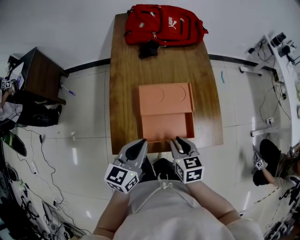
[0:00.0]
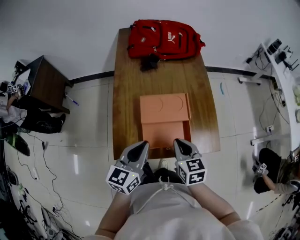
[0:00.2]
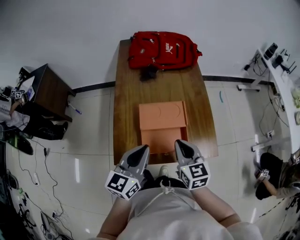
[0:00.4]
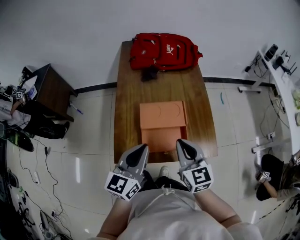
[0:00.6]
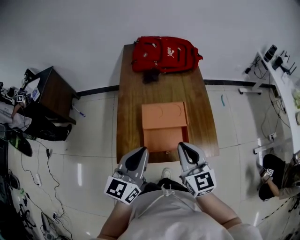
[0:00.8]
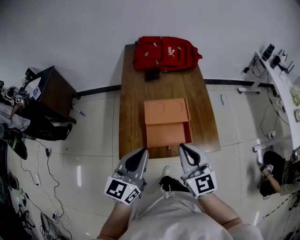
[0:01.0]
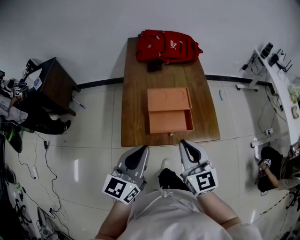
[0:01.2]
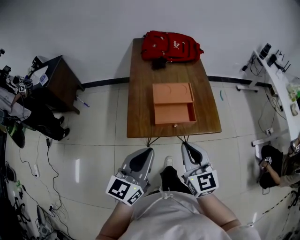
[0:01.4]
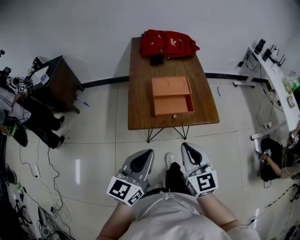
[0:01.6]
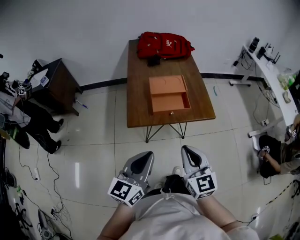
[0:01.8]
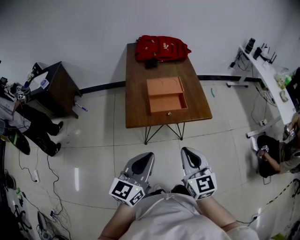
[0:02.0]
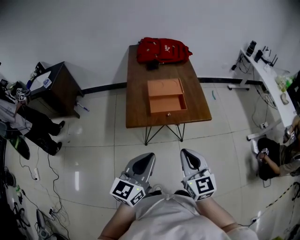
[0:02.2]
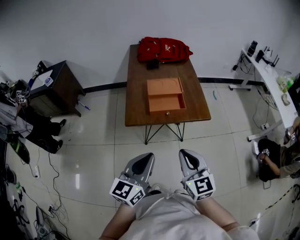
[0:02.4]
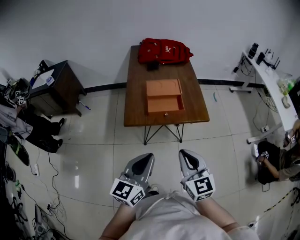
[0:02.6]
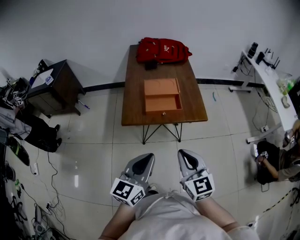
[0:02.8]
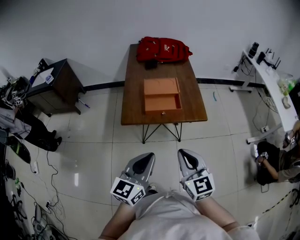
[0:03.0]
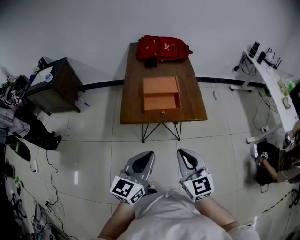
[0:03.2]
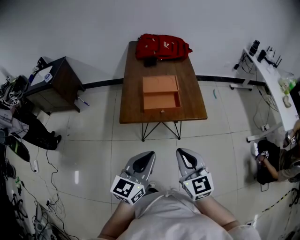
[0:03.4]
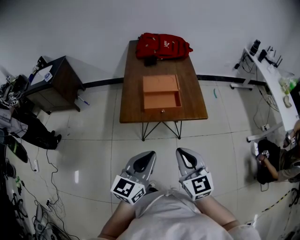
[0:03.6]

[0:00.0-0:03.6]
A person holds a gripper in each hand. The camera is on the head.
0:00.0 to 0:01.8: Both grippers move backward and upward, about 35 cm. The right gripper changes its angle by some 30 degrees, and closes up.
0:01.8 to 0:03.6: The right gripper heads to the right, covering roughly 5 cm. Meanwhile the left gripper shifts roughly 10 cm to the right.

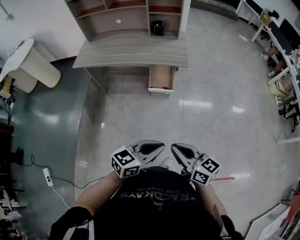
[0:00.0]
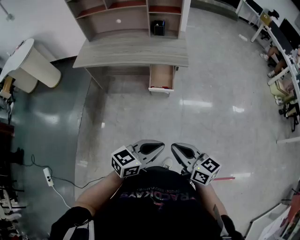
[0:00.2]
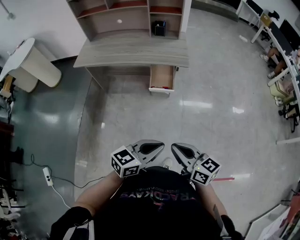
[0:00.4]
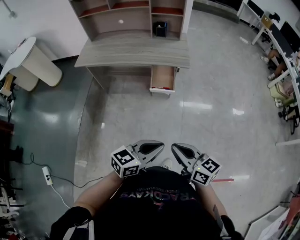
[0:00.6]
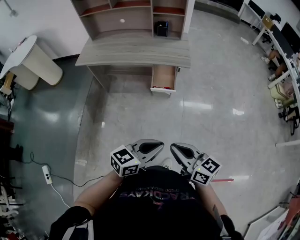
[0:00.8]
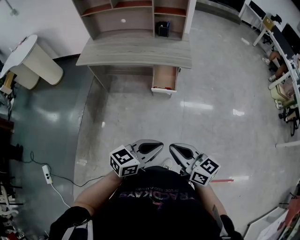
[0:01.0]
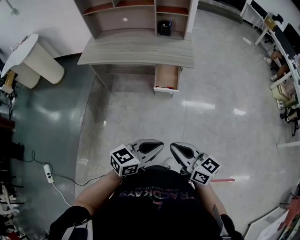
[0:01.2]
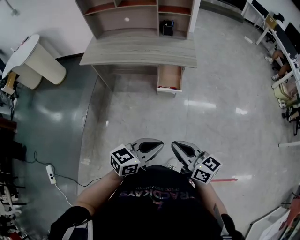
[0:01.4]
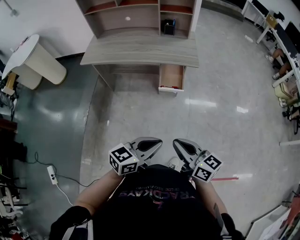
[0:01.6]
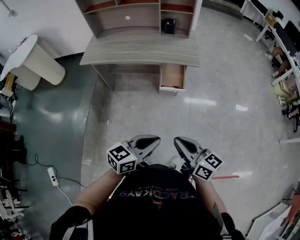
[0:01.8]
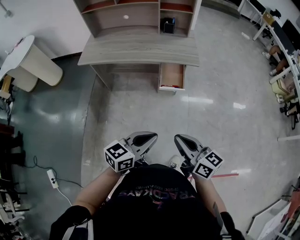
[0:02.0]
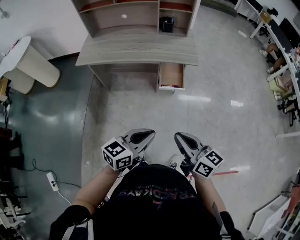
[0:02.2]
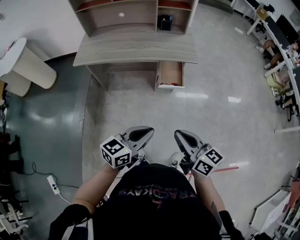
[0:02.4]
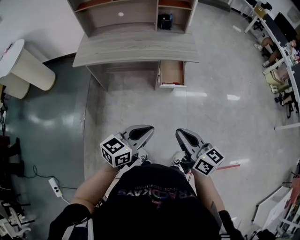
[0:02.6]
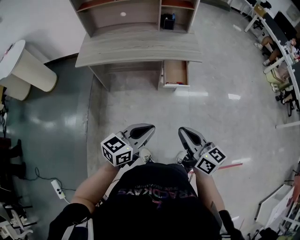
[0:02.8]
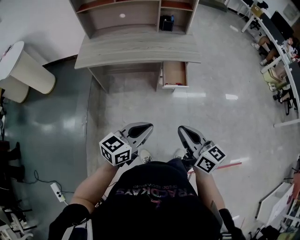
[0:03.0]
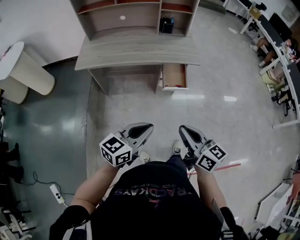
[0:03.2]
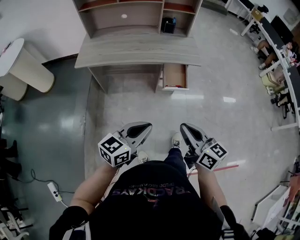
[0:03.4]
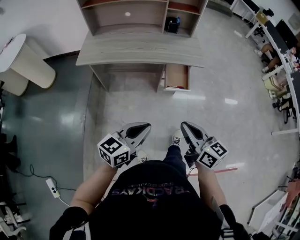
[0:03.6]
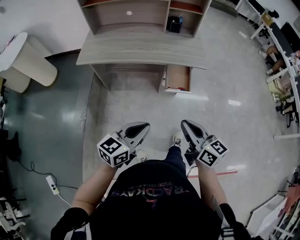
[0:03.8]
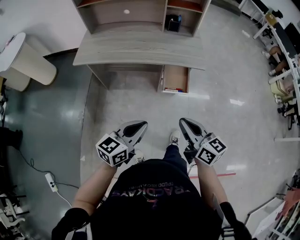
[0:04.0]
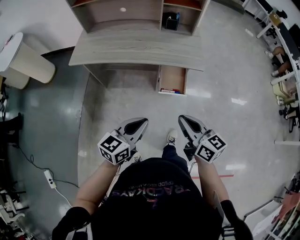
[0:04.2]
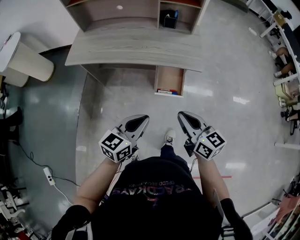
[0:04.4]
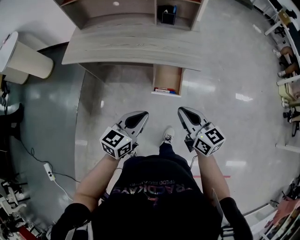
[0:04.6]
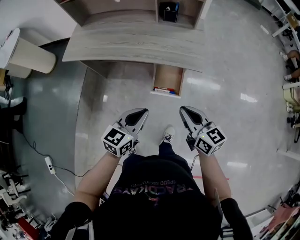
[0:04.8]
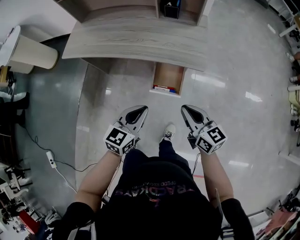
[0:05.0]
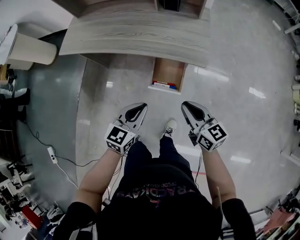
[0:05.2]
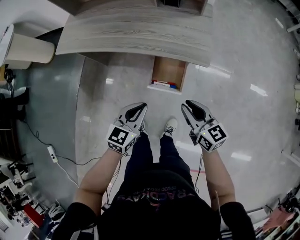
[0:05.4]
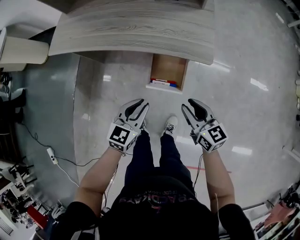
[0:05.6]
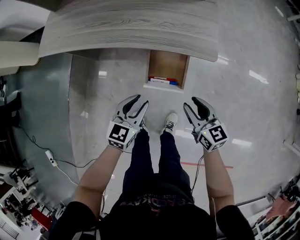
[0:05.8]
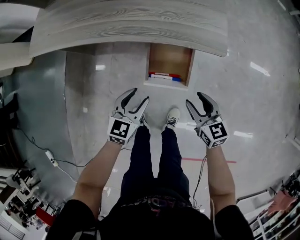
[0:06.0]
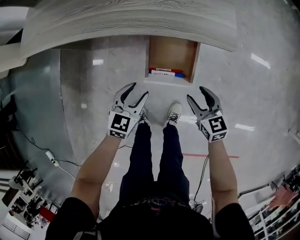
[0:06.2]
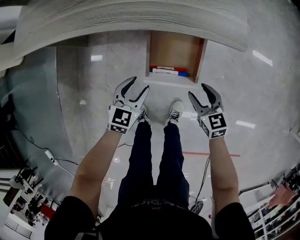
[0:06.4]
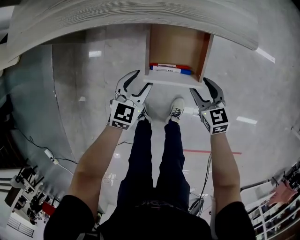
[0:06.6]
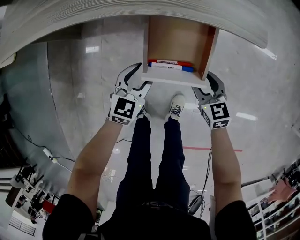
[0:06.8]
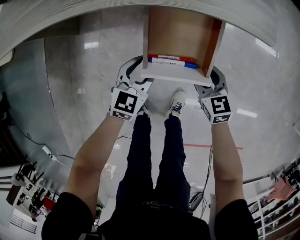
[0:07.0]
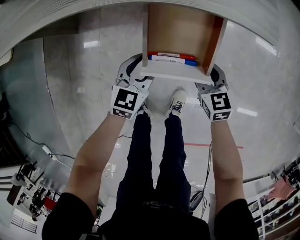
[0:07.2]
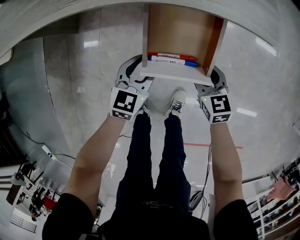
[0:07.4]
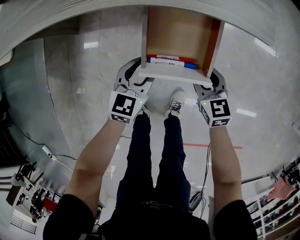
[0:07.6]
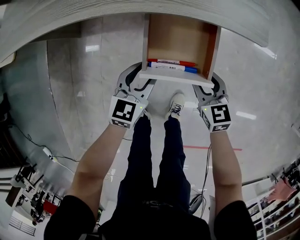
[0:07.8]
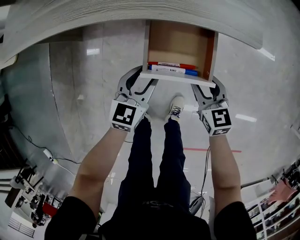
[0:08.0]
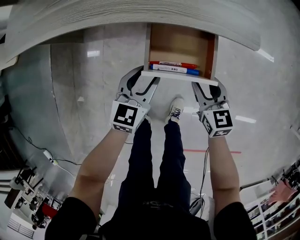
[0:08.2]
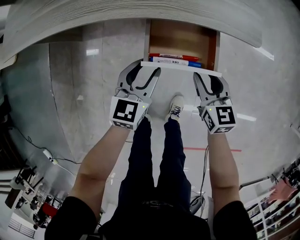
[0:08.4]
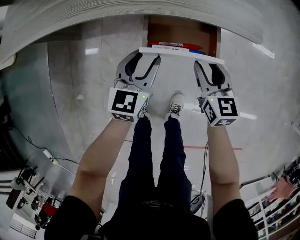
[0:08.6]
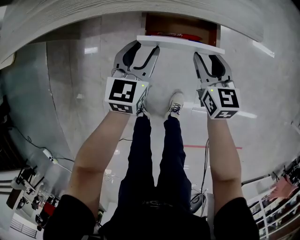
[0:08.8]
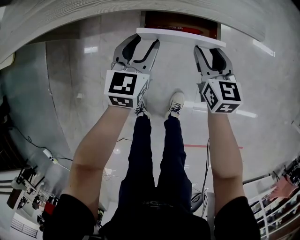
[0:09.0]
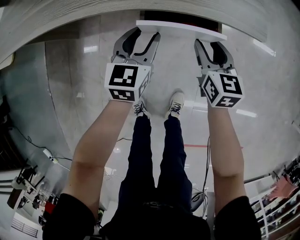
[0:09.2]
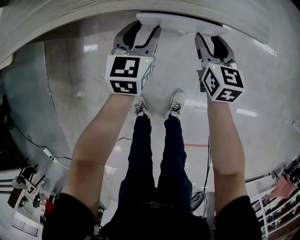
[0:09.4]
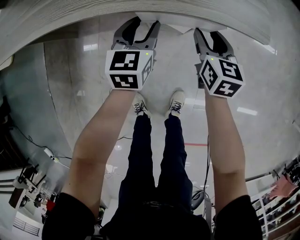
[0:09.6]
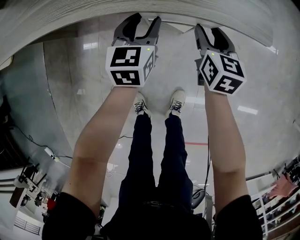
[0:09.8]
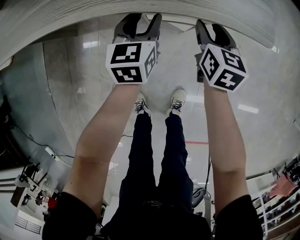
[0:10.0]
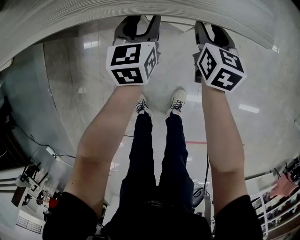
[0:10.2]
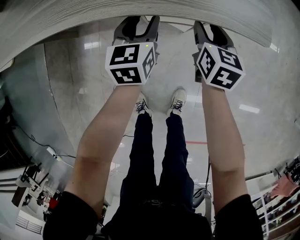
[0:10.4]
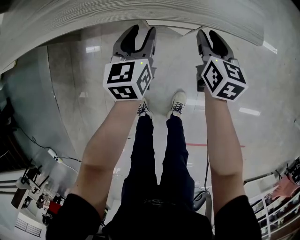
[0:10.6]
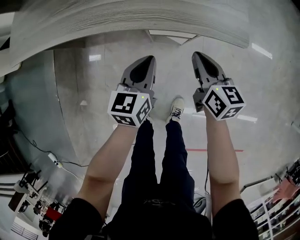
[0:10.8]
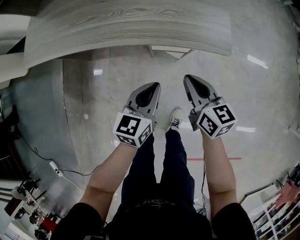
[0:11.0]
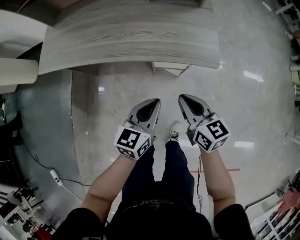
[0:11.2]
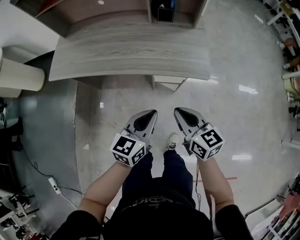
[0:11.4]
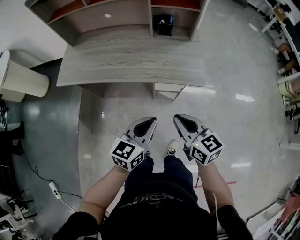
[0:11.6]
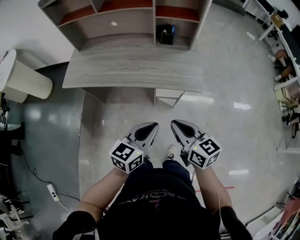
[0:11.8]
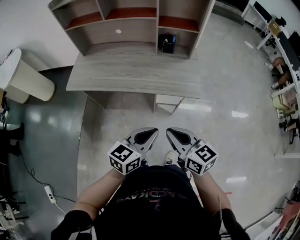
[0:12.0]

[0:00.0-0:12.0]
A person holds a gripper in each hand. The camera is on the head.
0:00.0 to 0:01.6: The right gripper shifts by roughly 5 cm; the left gripper shifts about 5 cm to the left.
0:01.6 to 0:03.0: The left gripper travels to the left by some 15 cm. The right gripper is displaced to the left by about 10 cm.
0:03.0 to 0:04.4: The two grippers go roughly 15 cm forward and to the right.
0:04.4 to 0:06.0: The left gripper goes approximately 20 cm downward and forward, changes its angle by approximately 20 degrees, and opens its fingers. Meanwhile the right gripper goes roughly 25 cm downward, and opens.
0:06.0 to 0:07.6: The left gripper shifts some 10 cm downward and forward, while the right gripper is displaced downward by approximately 10 cm.
0:07.6 to 0:09.0: The two grippers go roughly 10 cm forward and upward.
0:09.0 to 0:10.4: Both grippers move forward, approximately 10 cm.
0:10.4 to 0:12.0: The left gripper shifts approximately 40 cm upward and backward, swivels approximately 30 degrees, and closes its fingers. Meanwhile the right gripper goes about 40 cm upward, backward and to the left, rotates about 40 degrees, and closes its fingers.

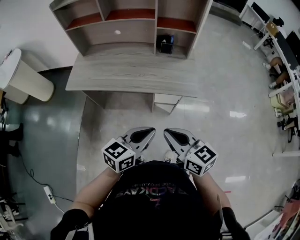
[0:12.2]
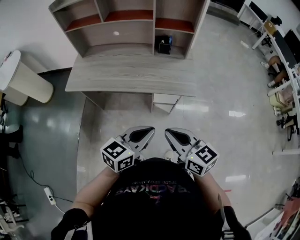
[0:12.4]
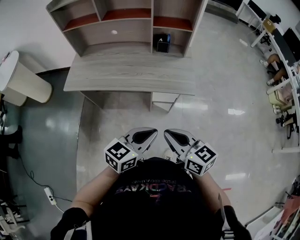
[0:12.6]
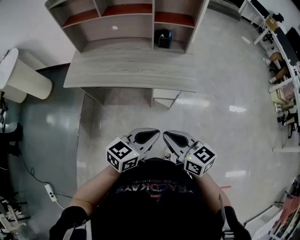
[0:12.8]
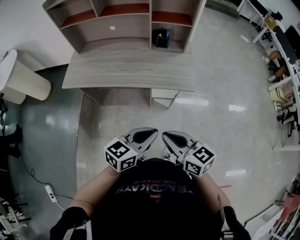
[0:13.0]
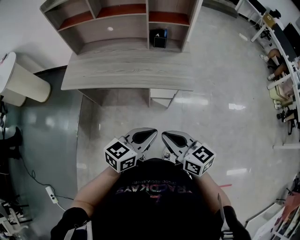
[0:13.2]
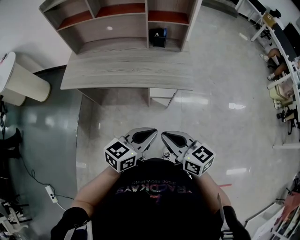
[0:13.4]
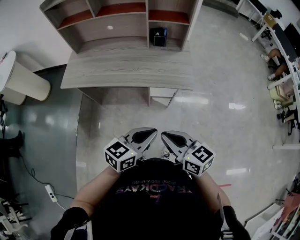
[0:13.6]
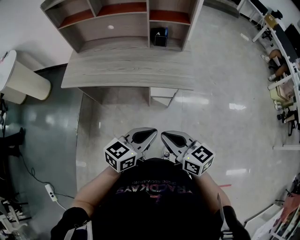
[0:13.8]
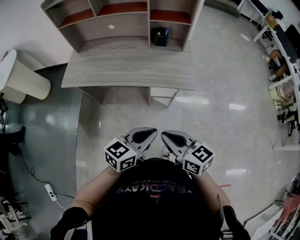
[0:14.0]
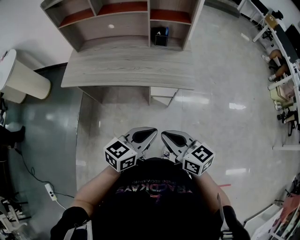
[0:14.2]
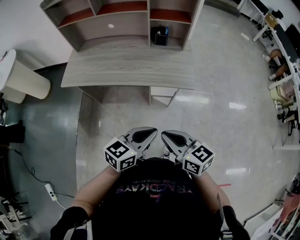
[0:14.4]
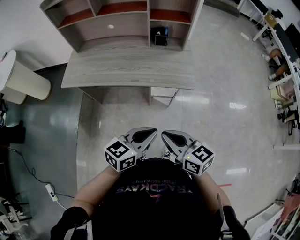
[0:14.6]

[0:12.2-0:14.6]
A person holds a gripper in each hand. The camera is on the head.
0:12.2 to 0:13.4: The grippers make only small movements.
0:13.4 to 0:14.6: Both grippers stay about where they are.

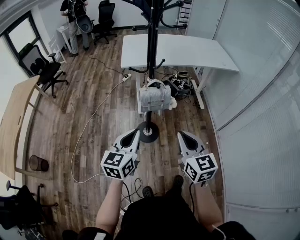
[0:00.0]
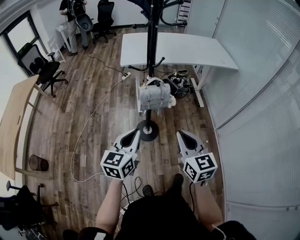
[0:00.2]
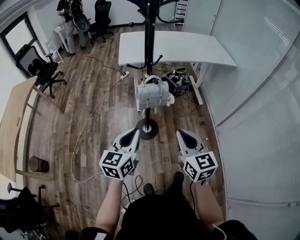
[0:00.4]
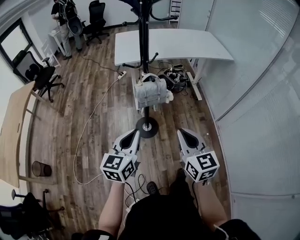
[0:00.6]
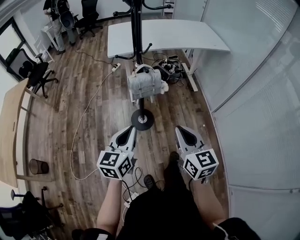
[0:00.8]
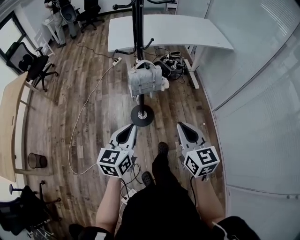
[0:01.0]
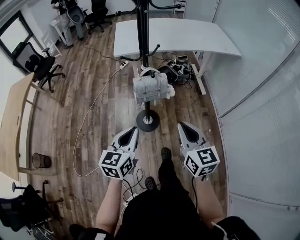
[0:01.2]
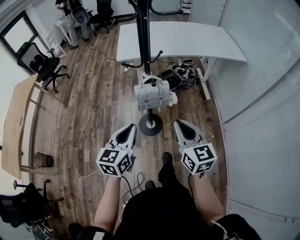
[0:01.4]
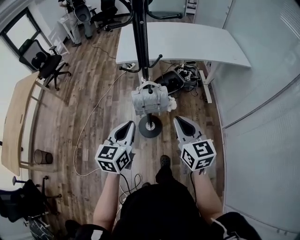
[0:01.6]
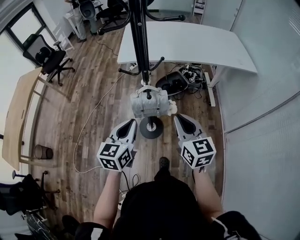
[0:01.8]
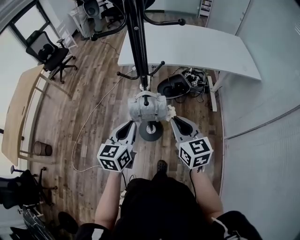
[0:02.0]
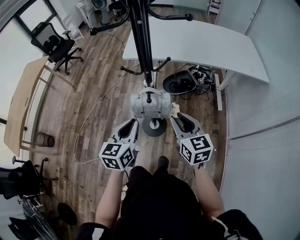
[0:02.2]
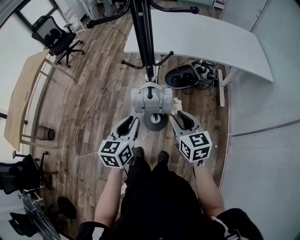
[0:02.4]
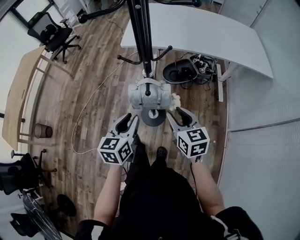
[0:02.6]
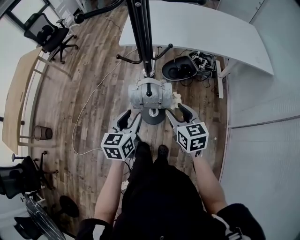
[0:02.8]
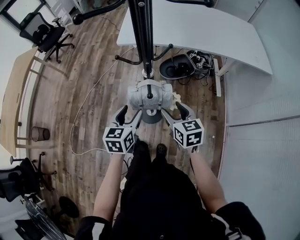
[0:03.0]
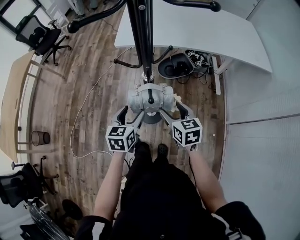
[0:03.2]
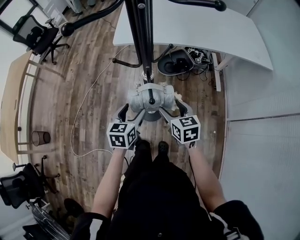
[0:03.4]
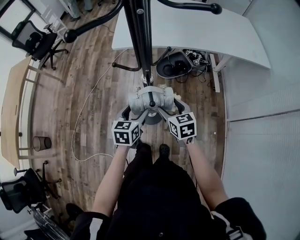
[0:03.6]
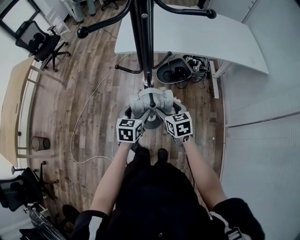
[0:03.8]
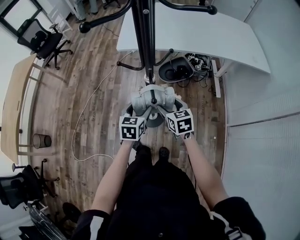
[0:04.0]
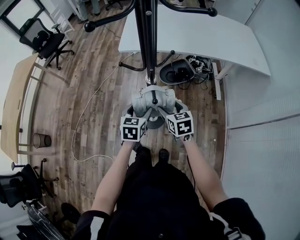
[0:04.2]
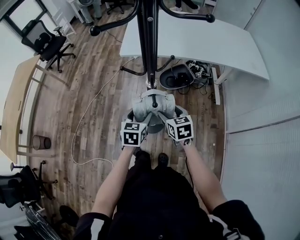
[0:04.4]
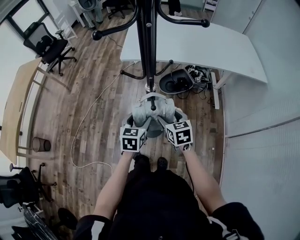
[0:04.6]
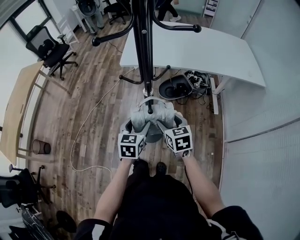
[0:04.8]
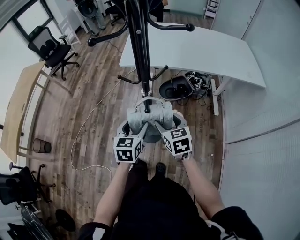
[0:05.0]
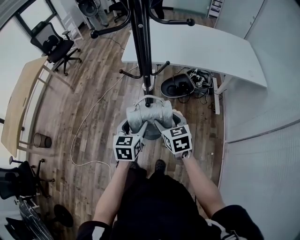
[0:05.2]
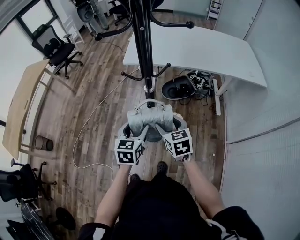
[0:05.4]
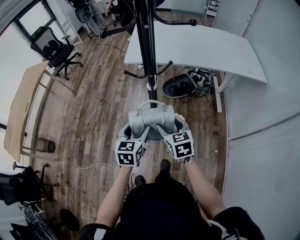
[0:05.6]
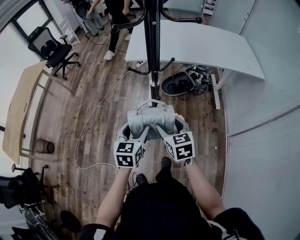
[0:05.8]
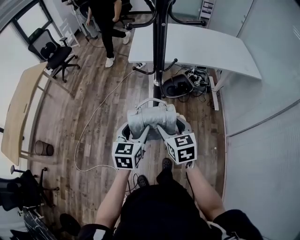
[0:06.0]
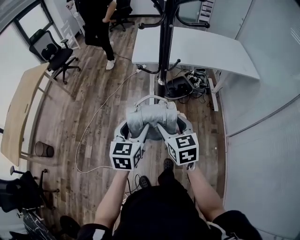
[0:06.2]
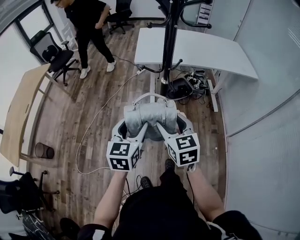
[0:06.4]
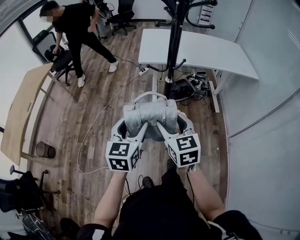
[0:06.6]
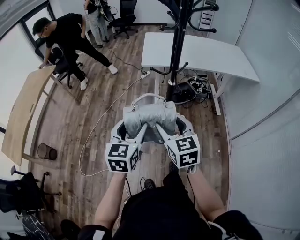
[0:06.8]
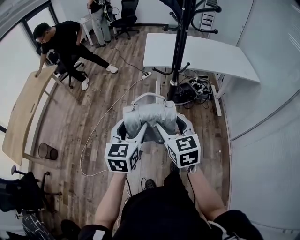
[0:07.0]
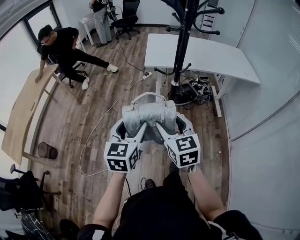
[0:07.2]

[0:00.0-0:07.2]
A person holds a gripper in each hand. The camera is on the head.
0:00.0 to 0:01.4: The two grippers go some 10 cm forward.
0:01.4 to 0:02.8: The two grippers go roughly 15 cm forward and downward. The right gripper rotates roughly 20 degrees, and opens up, while the left gripper opens its fingers.
0:02.8 to 0:04.4: The two grippers go roughly 10 cm downward and forward. The left gripper opens.
0:04.4 to 0:05.8: The two grippers go roughly 15 cm backward and upward.
0:05.8 to 0:07.2: The two grippers go approximately 20 cm to the left, upward and backward.
